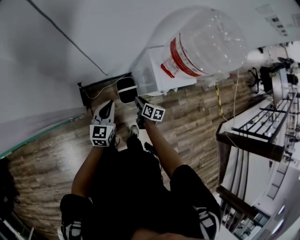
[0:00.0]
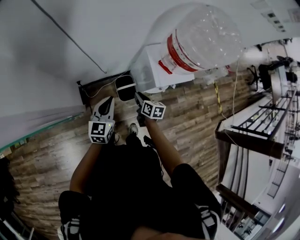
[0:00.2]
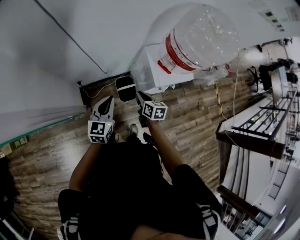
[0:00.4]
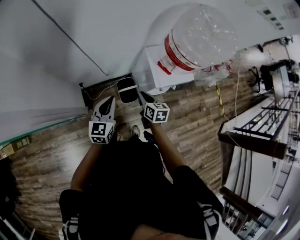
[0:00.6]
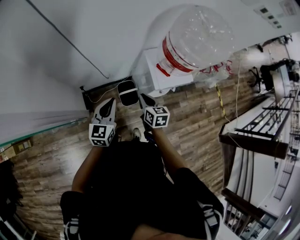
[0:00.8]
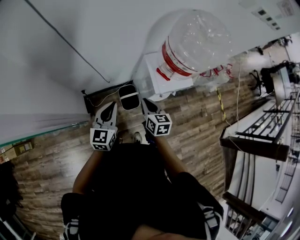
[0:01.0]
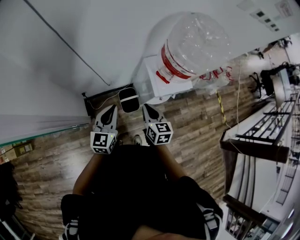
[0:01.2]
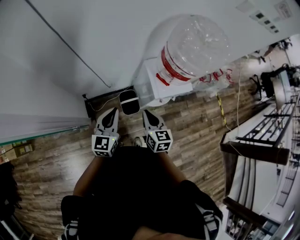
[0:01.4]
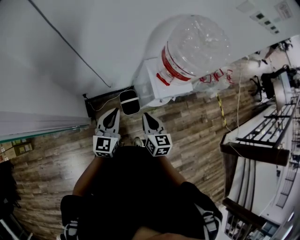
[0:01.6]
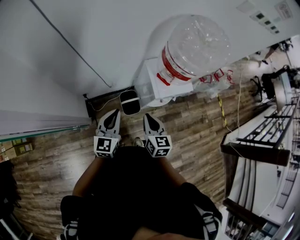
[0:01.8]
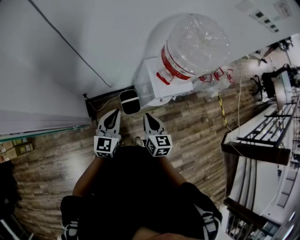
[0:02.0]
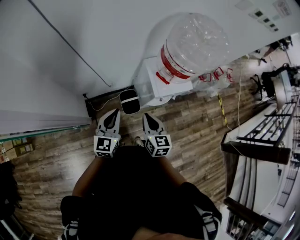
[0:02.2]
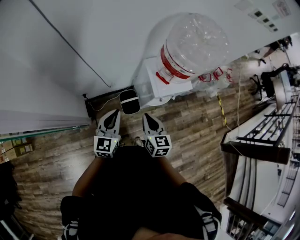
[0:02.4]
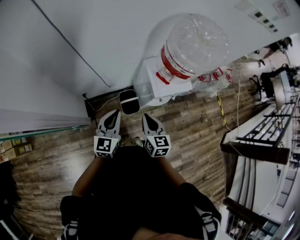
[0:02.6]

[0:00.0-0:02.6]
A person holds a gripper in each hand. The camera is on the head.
0:00.0 to 0:01.2: The left gripper is displaced upward by roughly 10 cm.

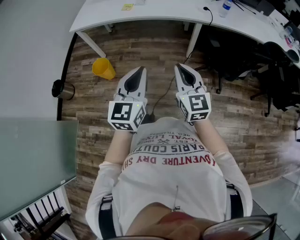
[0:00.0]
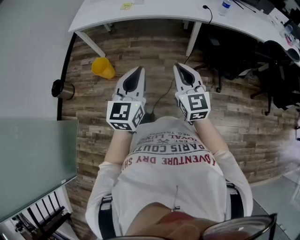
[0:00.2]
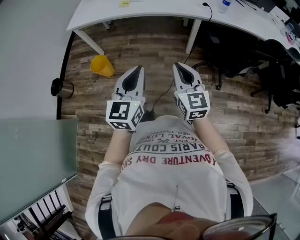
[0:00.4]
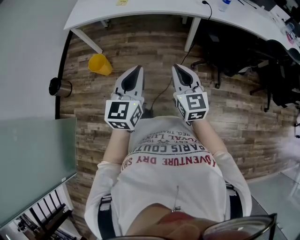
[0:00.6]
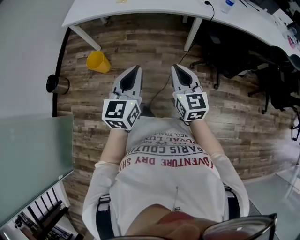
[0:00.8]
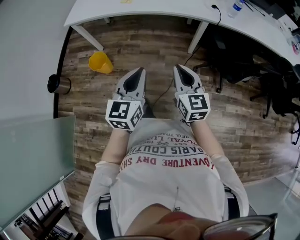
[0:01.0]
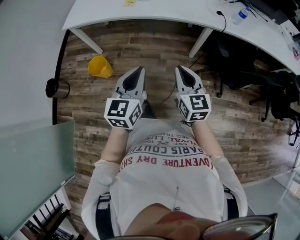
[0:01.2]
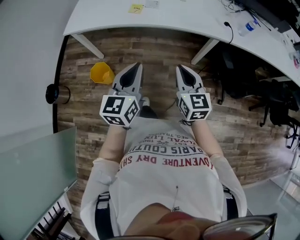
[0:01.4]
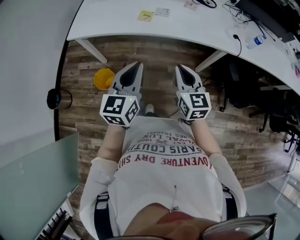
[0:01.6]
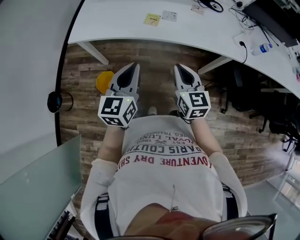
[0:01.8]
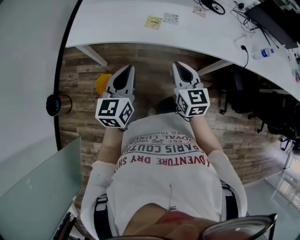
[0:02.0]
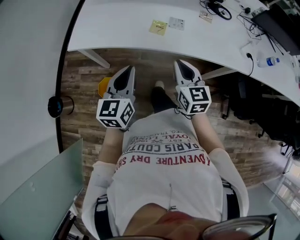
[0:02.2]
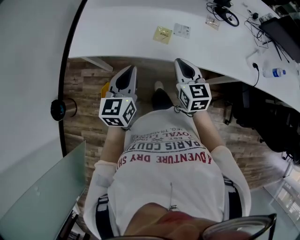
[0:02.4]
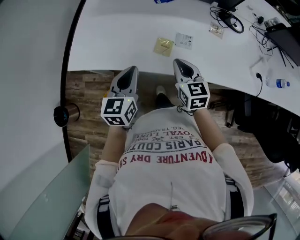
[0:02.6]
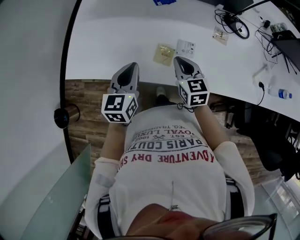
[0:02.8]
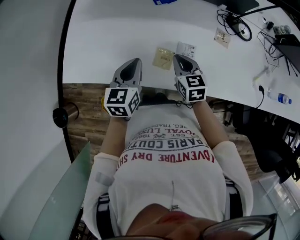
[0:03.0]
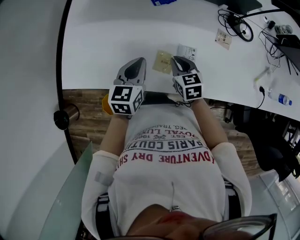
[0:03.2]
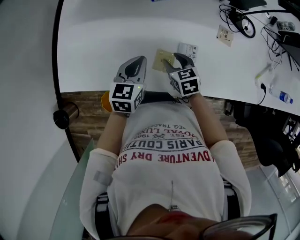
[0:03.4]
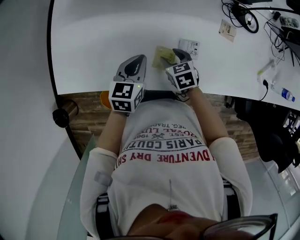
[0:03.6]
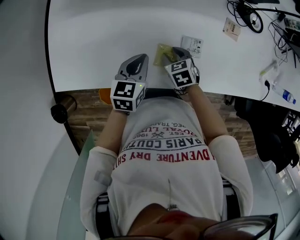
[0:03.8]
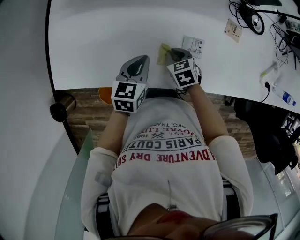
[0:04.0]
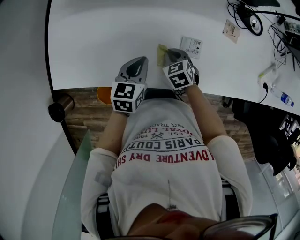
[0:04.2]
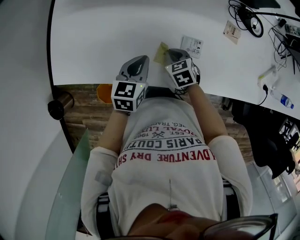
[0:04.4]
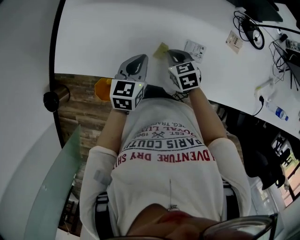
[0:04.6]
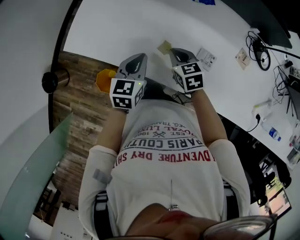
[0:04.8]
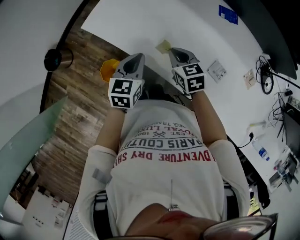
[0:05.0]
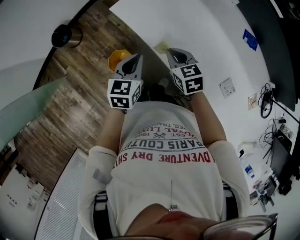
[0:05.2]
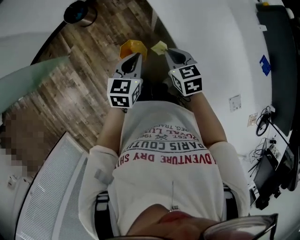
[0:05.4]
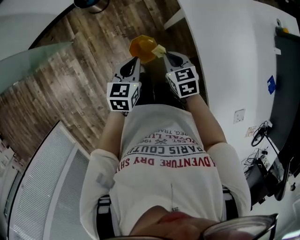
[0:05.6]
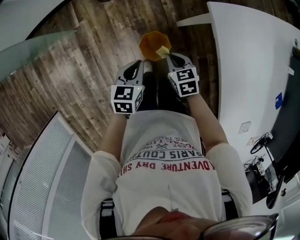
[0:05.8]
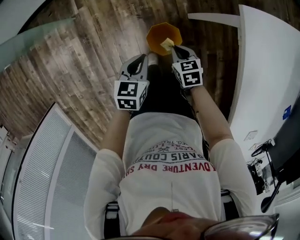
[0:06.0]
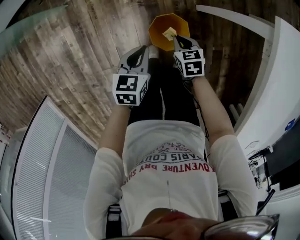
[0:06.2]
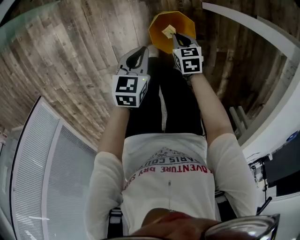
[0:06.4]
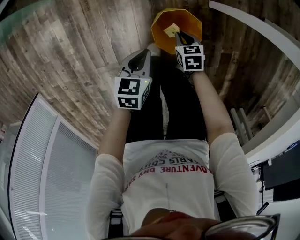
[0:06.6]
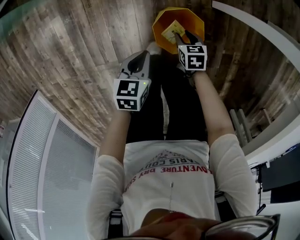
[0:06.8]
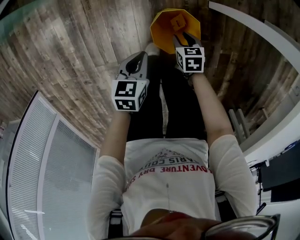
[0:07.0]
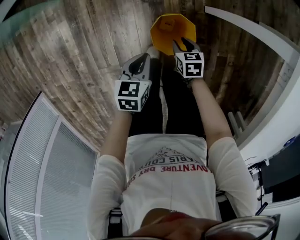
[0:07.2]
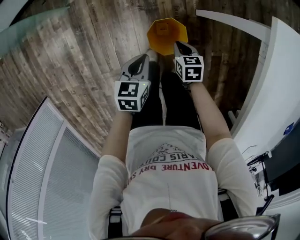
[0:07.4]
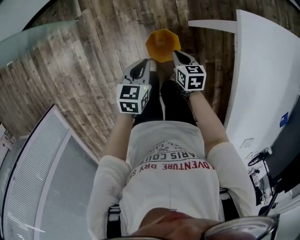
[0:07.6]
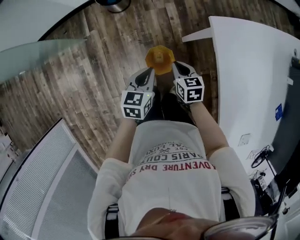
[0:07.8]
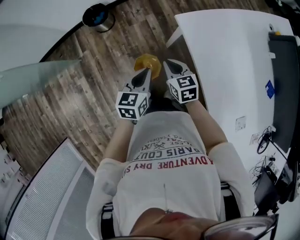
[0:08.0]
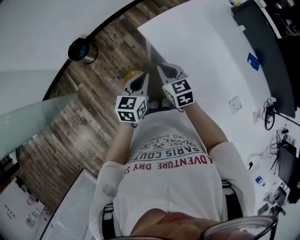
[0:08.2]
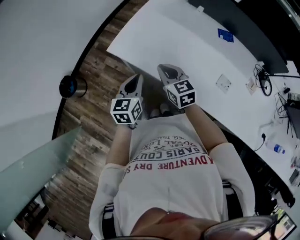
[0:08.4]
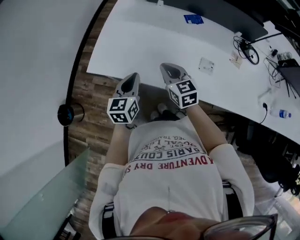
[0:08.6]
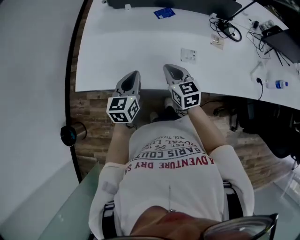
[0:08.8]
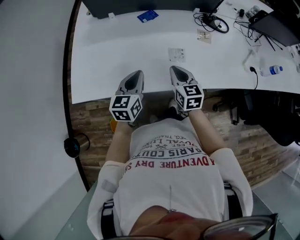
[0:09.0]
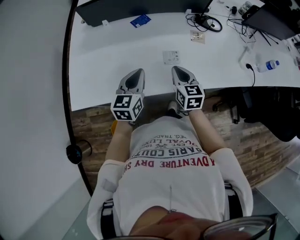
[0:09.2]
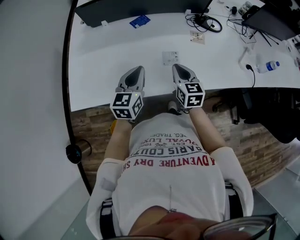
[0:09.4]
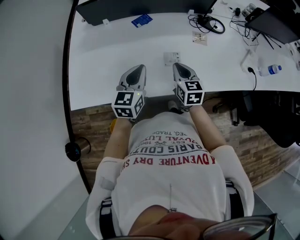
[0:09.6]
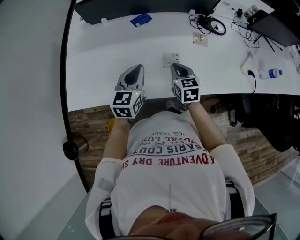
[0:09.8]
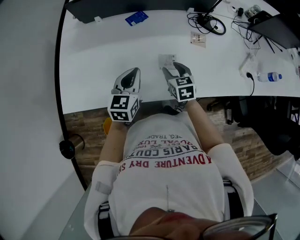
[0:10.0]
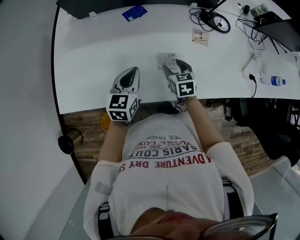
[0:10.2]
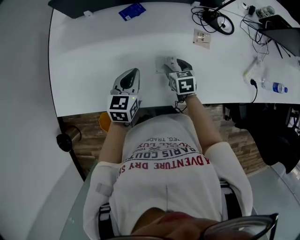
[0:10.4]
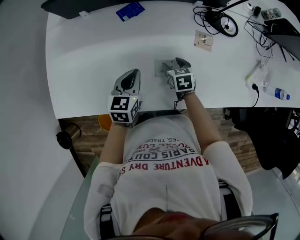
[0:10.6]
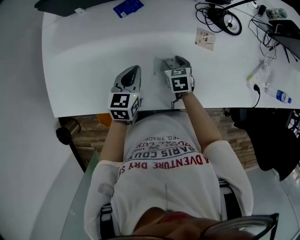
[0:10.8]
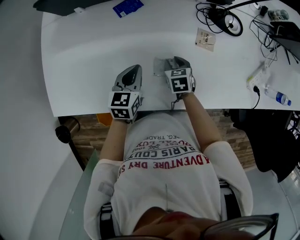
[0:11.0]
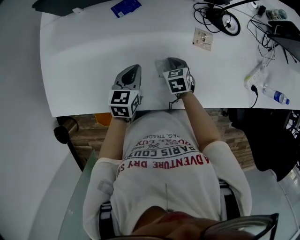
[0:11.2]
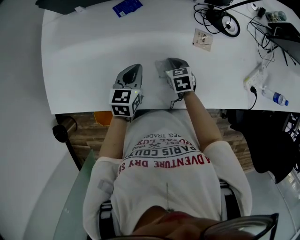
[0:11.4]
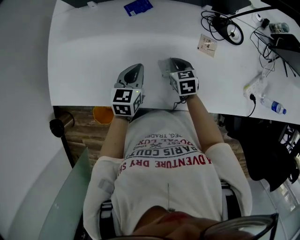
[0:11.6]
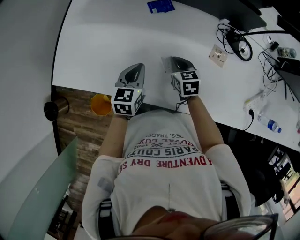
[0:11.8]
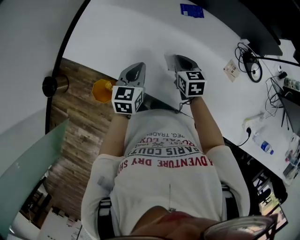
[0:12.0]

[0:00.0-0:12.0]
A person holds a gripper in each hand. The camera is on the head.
0:00.0 to 0:01.6: The two grippers go about 35 cm forward and to the left.
0:01.6 to 0:03.0: Both grippers are carried forward, roughly 50 cm. The right gripper swivels some 20 degrees.
0:03.0 to 0:04.4: Both grippers move downward, some 10 cm. The right gripper turns by approximately 30 degrees, and opens, then closes again.
0:04.4 to 0:06.0: Both grippers are carried approximately 60 cm. The left gripper rotates about 70 degrees. Meanwhile the right gripper rotates about 60 degrees.
0:06.0 to 0:07.6: The right gripper travels downward and back again, approximately 30 cm each way, and opens and closes again. The left gripper travels downward and back again, some 25 cm each way.
0:07.6 to 0:09.0: The pair of grippers is taken about 50 cm. The left gripper rotates some 80 degrees. The right gripper changes its angle by approximately 90 degrees.
0:09.0 to 0:10.4: The right gripper goes some 25 cm downward, forward and to the right, swivels about 30 degrees, and opens. The left gripper travels forward, downward and to the right by approximately 15 cm.
0:10.4 to 0:12.0: The left gripper shifts by approximately 10 cm, and turns by approximately 30 degrees, while the right gripper ends up roughly 15 cm from where it was, changes its angle by approximately 30 degrees, and closes.

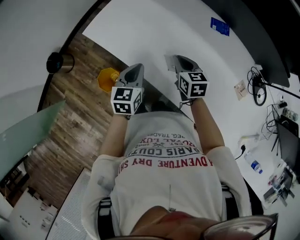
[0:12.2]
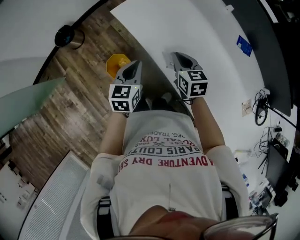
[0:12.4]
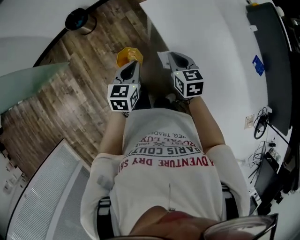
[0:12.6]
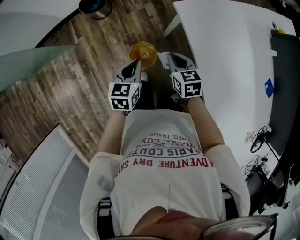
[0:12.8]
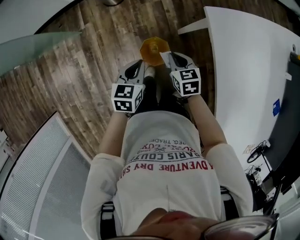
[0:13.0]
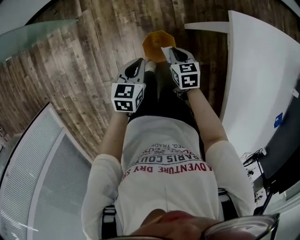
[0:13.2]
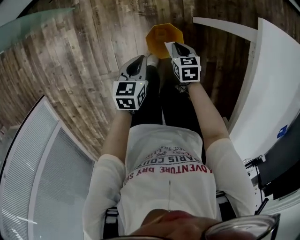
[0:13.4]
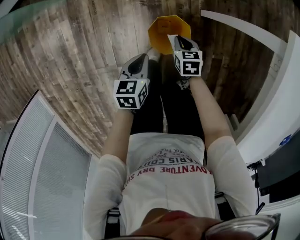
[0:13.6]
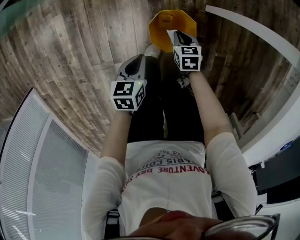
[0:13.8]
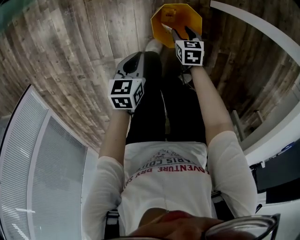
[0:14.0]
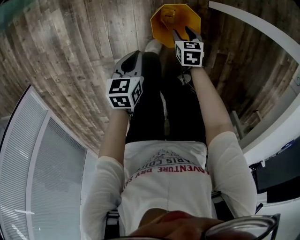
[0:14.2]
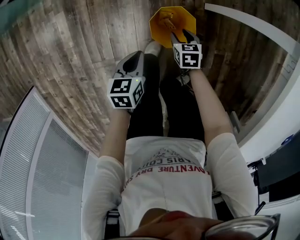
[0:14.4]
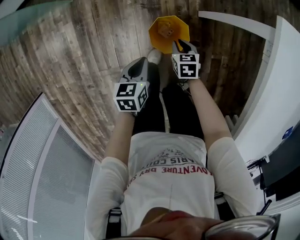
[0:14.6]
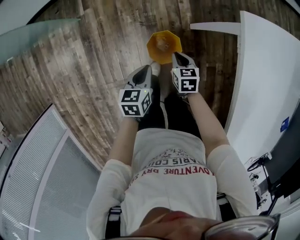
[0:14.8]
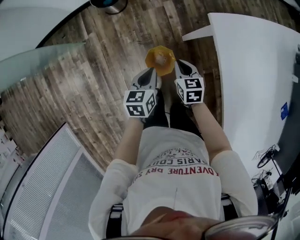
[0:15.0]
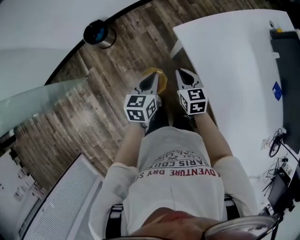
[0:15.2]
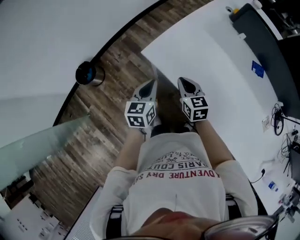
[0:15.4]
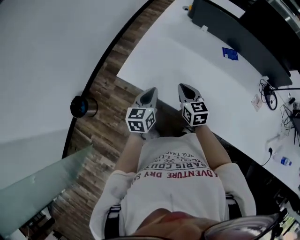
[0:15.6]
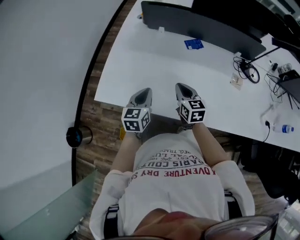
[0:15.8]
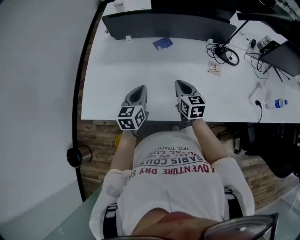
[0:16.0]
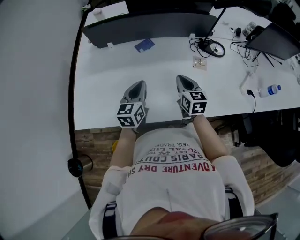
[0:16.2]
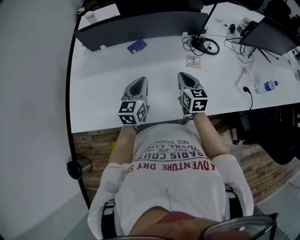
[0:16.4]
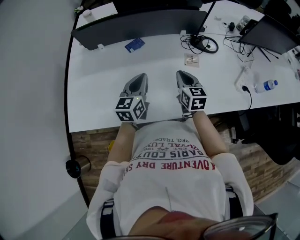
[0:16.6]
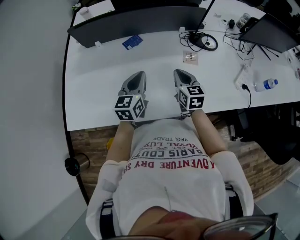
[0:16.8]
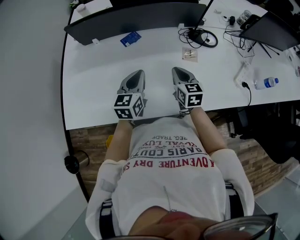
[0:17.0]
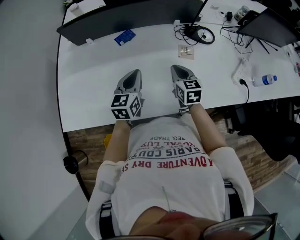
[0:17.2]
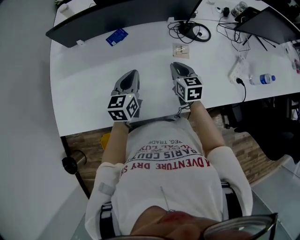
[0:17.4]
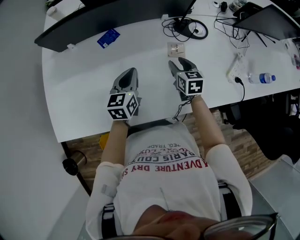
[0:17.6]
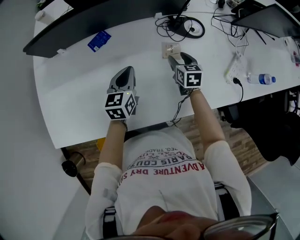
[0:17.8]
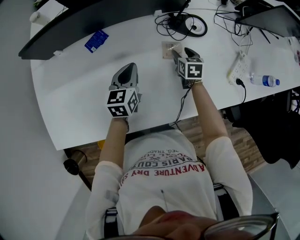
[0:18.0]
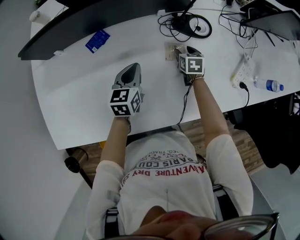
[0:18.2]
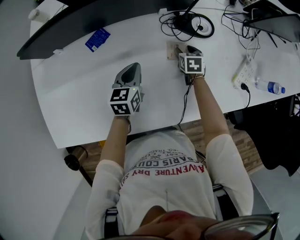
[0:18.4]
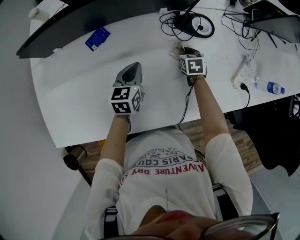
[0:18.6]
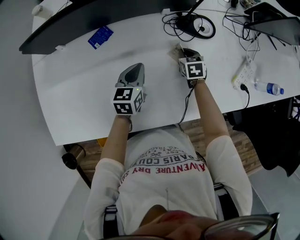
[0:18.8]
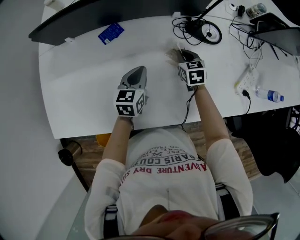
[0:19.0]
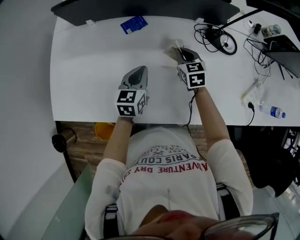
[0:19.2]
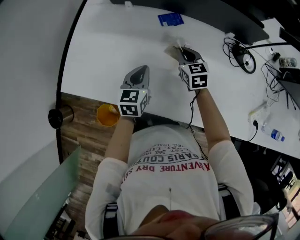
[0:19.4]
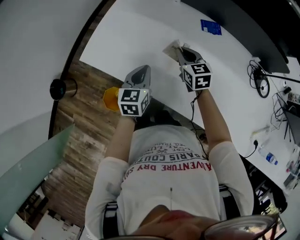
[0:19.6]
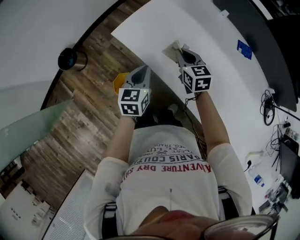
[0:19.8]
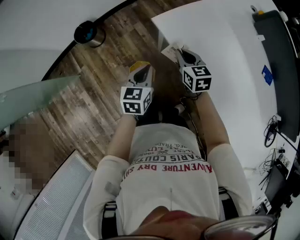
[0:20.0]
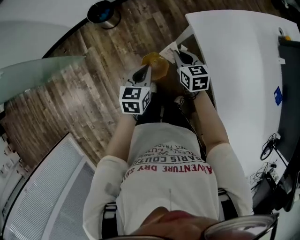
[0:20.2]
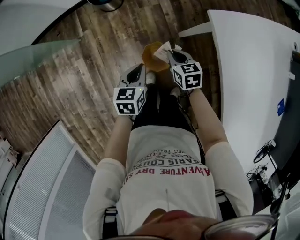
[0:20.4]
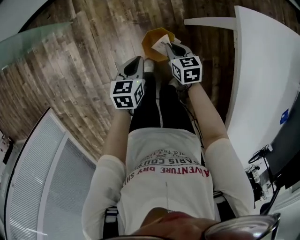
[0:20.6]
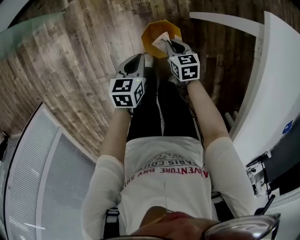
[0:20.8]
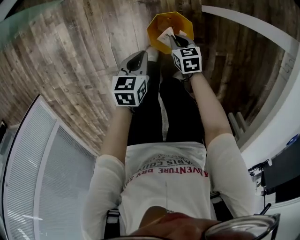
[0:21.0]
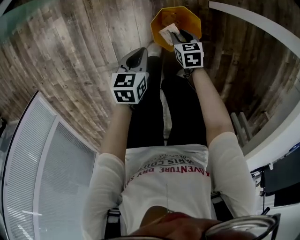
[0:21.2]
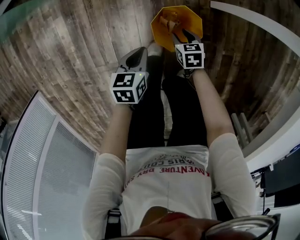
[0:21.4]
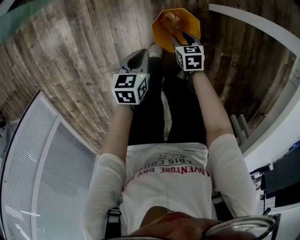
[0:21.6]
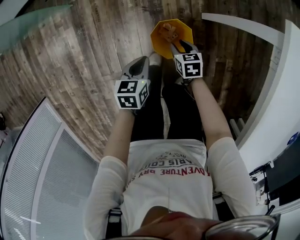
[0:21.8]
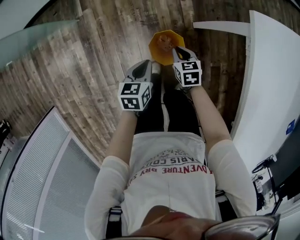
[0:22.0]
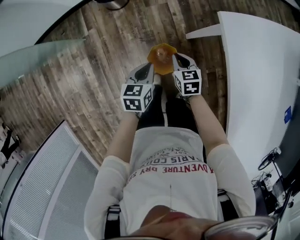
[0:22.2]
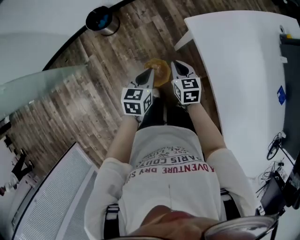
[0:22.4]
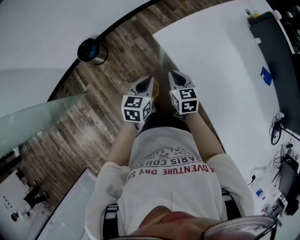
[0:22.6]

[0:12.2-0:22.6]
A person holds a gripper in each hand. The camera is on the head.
0:12.2 to 0:13.6: The two grippers travel together, roughly 50 cm. The right gripper rotates approximately 50 degrees, while the left gripper twists approximately 50 degrees counterclockwise, seen from behind.
0:13.6 to 0:15.2: The right gripper is displaced upward by about 40 cm, rotates roughly 30 degrees, and opens and closes again. Meanwhile the left gripper moves upward and to the right, approximately 40 cm, and changes its angle by roughly 30 degrees.
0:15.2 to 0:16.6: The two grippers travel together, some 60 cm. The left gripper rotates some 70 degrees. The right gripper swivels approximately 80 degrees.
0:16.6 to 0:18.2: The left gripper shifts roughly 20 cm forward, downward and to the right; the right gripper travels downward, forward and to the right by approximately 30 cm, points its fingers roughly 30 degrees further downward, and opens up.
0:18.2 to 0:19.6: The left gripper ends up about 40 cm from where it was, and rotates about 40 degrees, while the right gripper ends up about 50 cm from where it was, changes its angle by about 60 degrees, and closes up.
0:19.6 to 0:21.2: The pair of grippers is taken roughly 50 cm. The left gripper changes its angle by roughly 70 degrees. The right gripper travels downward by about 60 cm, angles its fingers downward, by approximately 30 degrees, and opens its fingers.
0:21.2 to 0:22.6: Both grippers travel together upward, some 50 cm. The left gripper changes its angle by about 40 degrees, while the right gripper turns by roughly 50 degrees, and closes up.
